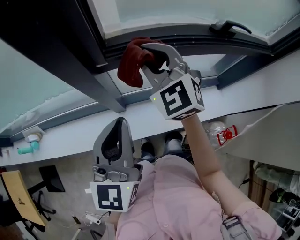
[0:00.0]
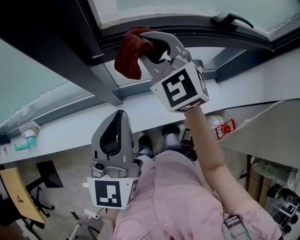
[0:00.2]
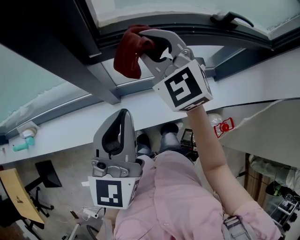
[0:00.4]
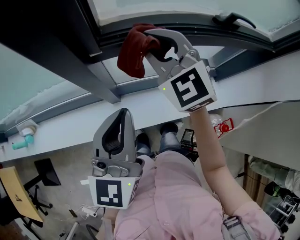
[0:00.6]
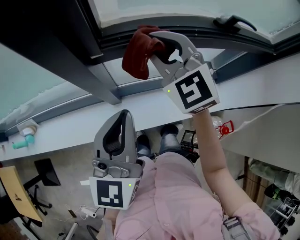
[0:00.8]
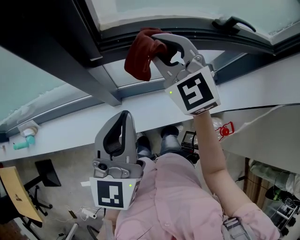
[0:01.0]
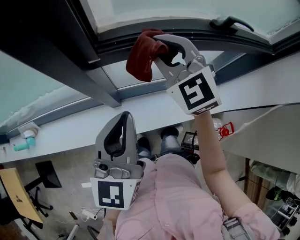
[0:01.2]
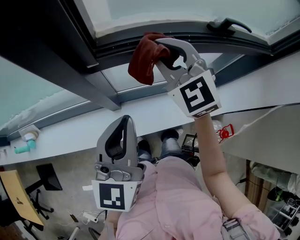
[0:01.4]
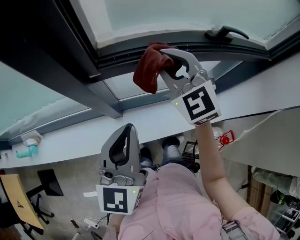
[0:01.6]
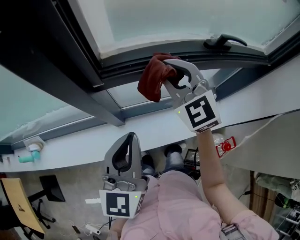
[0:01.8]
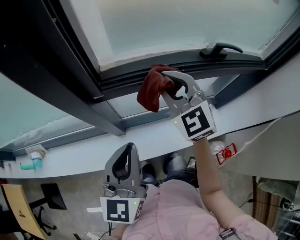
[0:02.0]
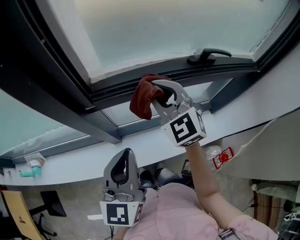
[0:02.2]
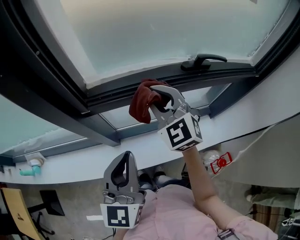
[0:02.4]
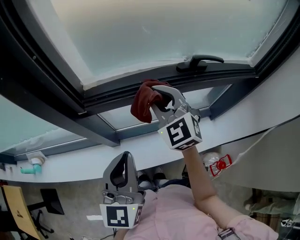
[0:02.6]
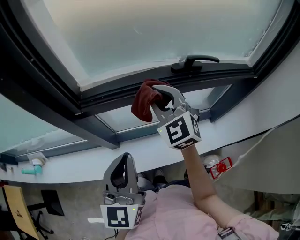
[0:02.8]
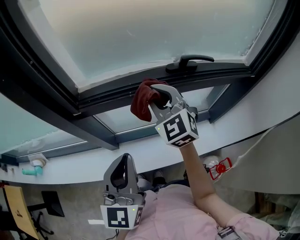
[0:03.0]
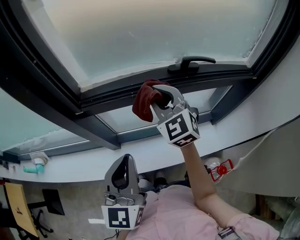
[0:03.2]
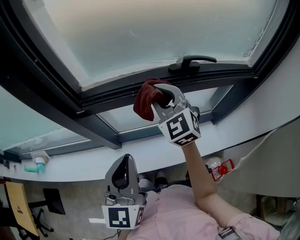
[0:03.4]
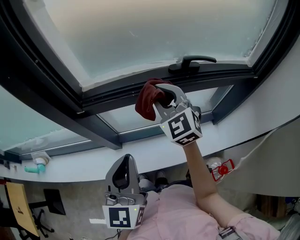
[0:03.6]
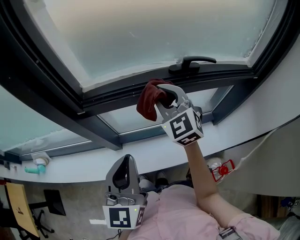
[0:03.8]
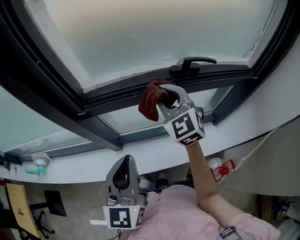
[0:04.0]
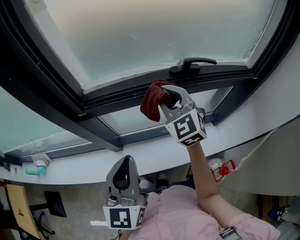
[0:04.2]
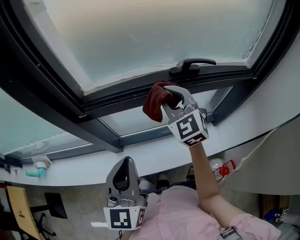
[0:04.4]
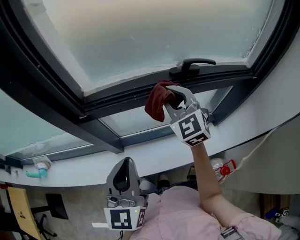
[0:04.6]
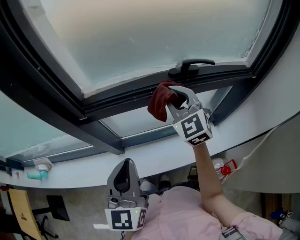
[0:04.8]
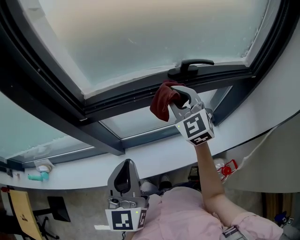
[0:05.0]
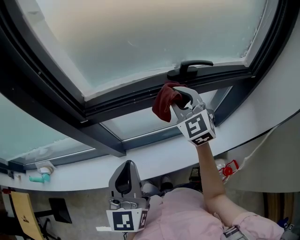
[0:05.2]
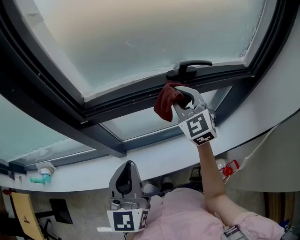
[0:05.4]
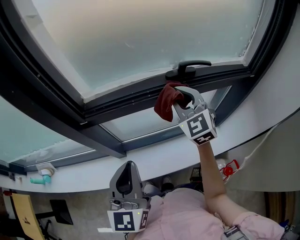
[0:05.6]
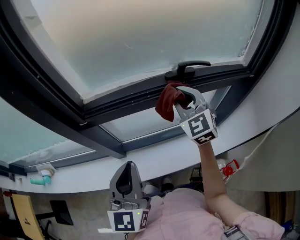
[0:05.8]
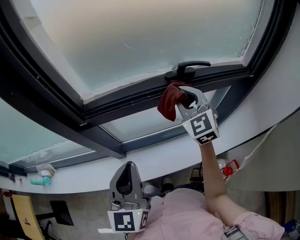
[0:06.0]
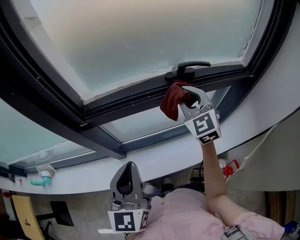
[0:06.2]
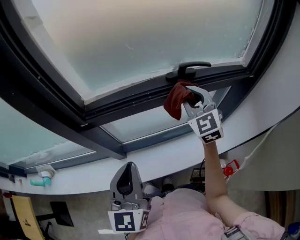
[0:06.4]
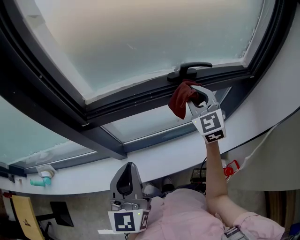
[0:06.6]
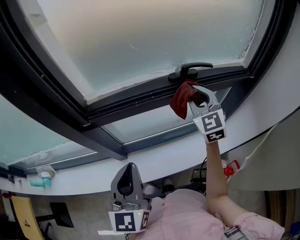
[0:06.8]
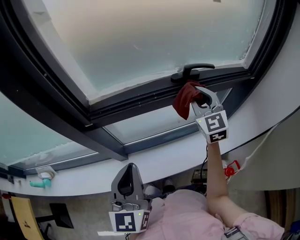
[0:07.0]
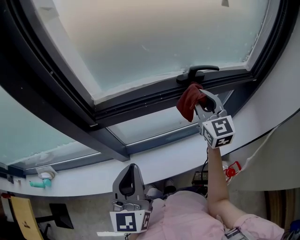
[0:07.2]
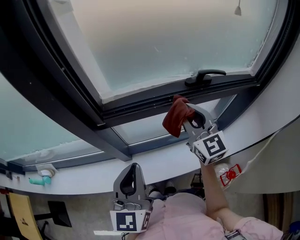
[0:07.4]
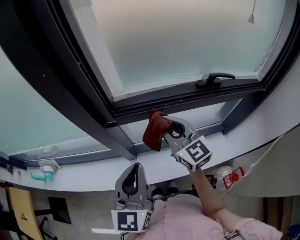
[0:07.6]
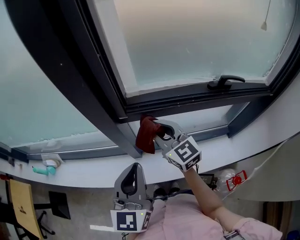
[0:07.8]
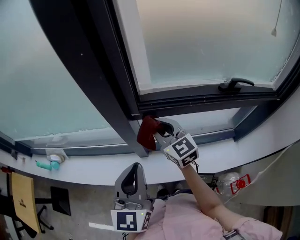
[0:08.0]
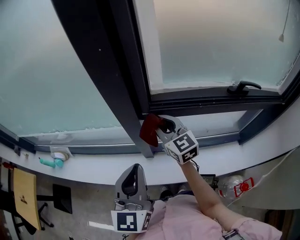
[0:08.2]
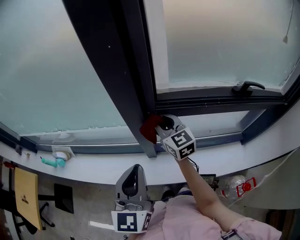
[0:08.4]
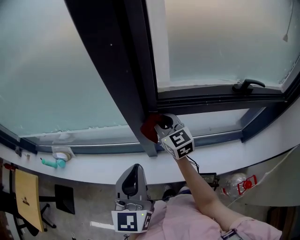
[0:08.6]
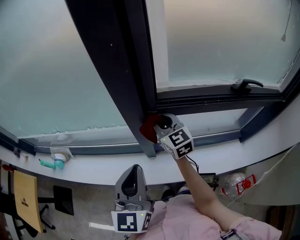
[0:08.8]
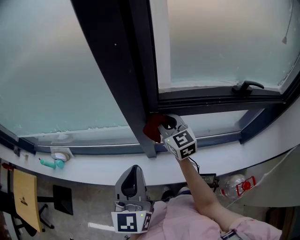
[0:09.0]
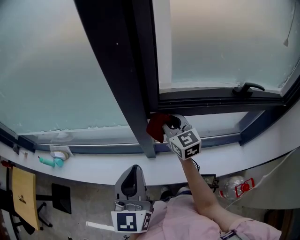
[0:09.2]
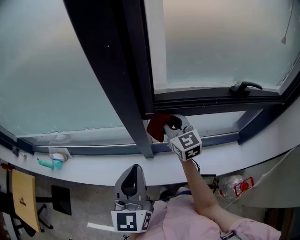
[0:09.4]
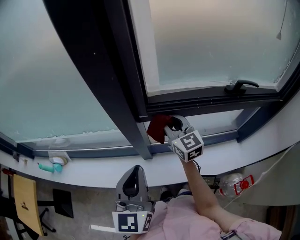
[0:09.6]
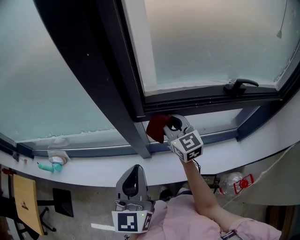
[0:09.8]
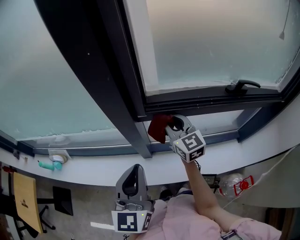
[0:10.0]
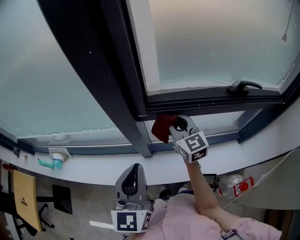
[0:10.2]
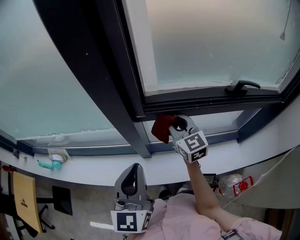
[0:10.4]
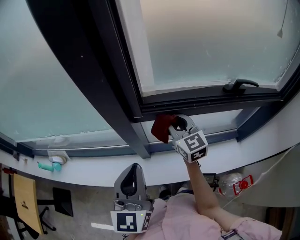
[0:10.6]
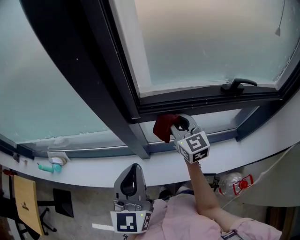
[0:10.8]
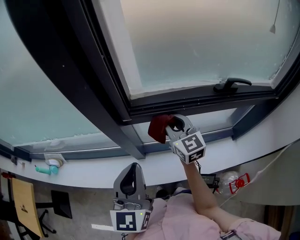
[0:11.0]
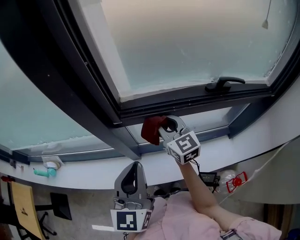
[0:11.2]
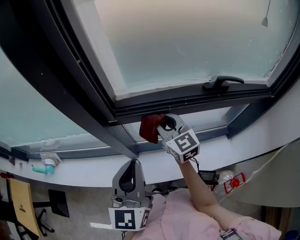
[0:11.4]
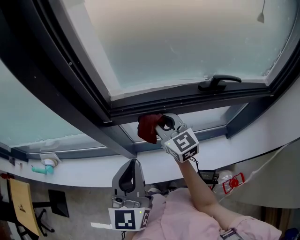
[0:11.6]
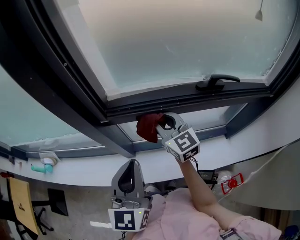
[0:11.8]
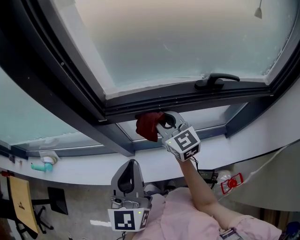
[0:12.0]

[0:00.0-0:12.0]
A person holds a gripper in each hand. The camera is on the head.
0:00.0 to 0:01.6: The right gripper goes about 5 cm to the right.
0:01.6 to 0:03.0: Both grippers travel together to the right, some 10 cm.
0:03.0 to 0:04.4: There are only small adjustments of the grippers.
0:04.4 to 0:06.0: The right gripper is displaced to the right by about 5 cm.
0:06.0 to 0:07.6: The right gripper goes roughly 20 cm to the left, and turns by approximately 30 degrees. The left gripper moves to the left, roughly 10 cm.
0:07.6 to 0:09.0: The right gripper shifts about 15 cm to the left and forward; the left gripper goes roughly 15 cm to the left.
0:09.0 to 0:10.4: The right gripper travels to the right by roughly 10 cm; the left gripper goes roughly 5 cm to the right.
0:10.4 to 0:12.0: Both grippers travel together to the right, some 10 cm.

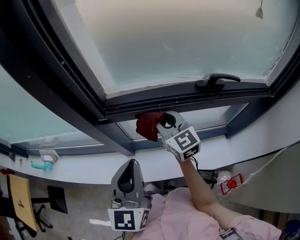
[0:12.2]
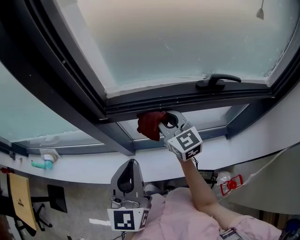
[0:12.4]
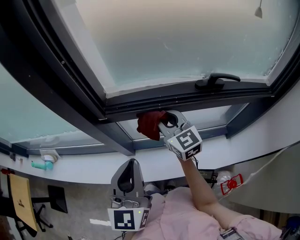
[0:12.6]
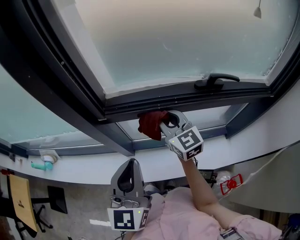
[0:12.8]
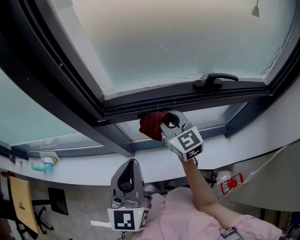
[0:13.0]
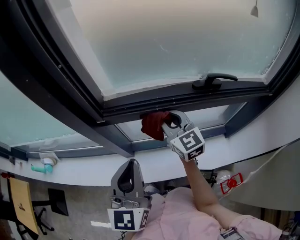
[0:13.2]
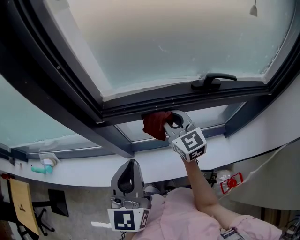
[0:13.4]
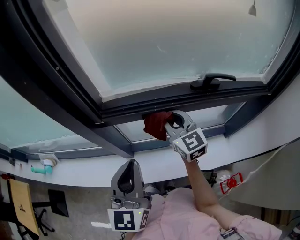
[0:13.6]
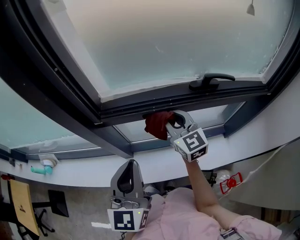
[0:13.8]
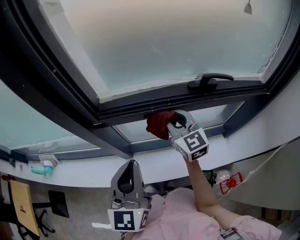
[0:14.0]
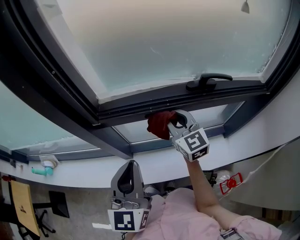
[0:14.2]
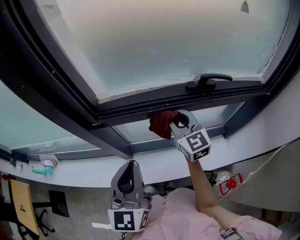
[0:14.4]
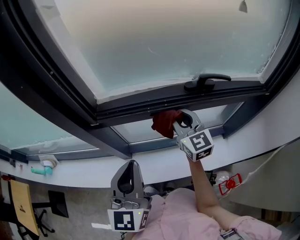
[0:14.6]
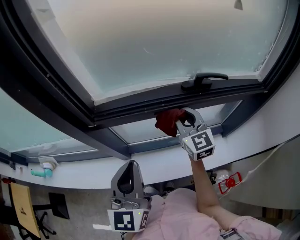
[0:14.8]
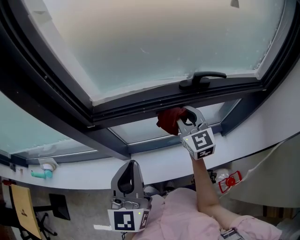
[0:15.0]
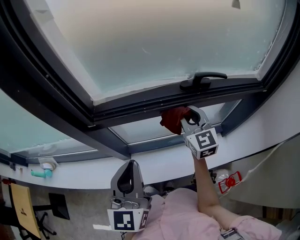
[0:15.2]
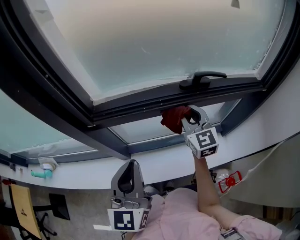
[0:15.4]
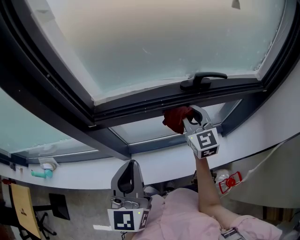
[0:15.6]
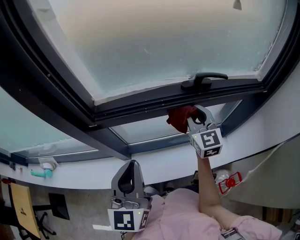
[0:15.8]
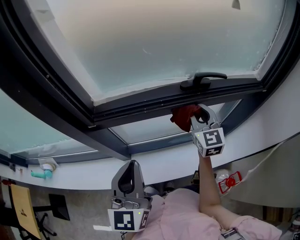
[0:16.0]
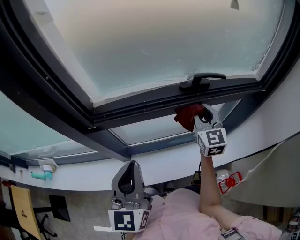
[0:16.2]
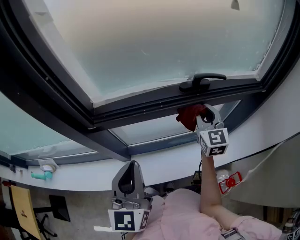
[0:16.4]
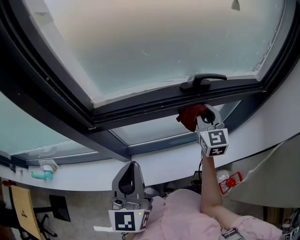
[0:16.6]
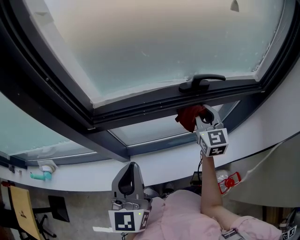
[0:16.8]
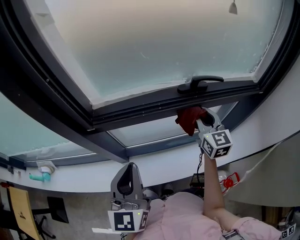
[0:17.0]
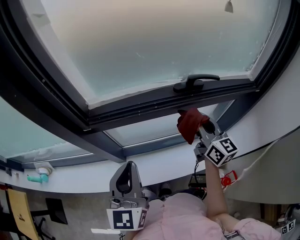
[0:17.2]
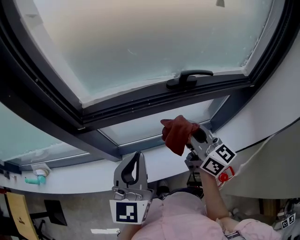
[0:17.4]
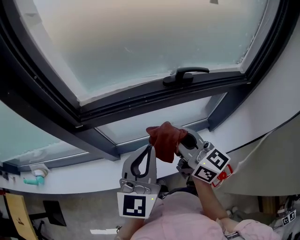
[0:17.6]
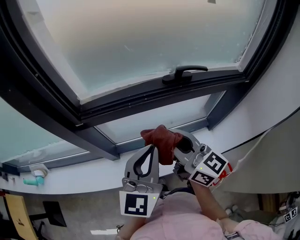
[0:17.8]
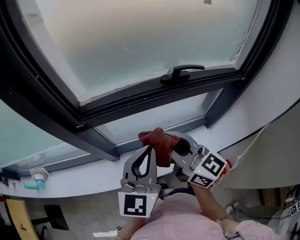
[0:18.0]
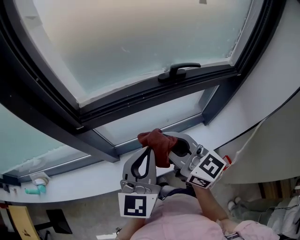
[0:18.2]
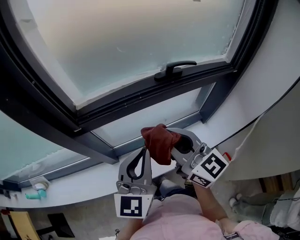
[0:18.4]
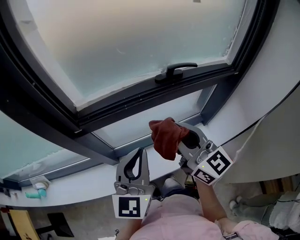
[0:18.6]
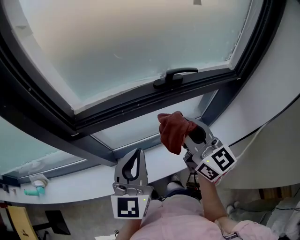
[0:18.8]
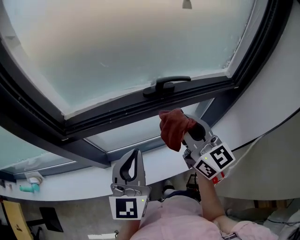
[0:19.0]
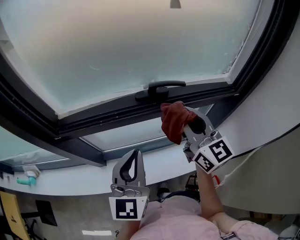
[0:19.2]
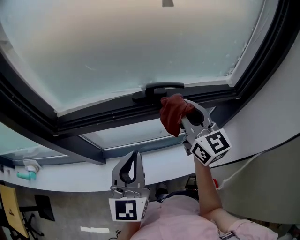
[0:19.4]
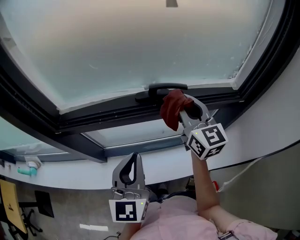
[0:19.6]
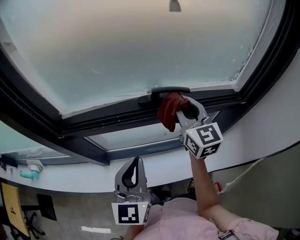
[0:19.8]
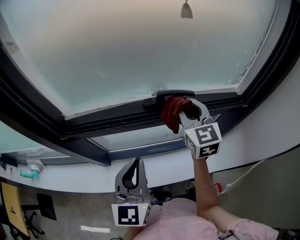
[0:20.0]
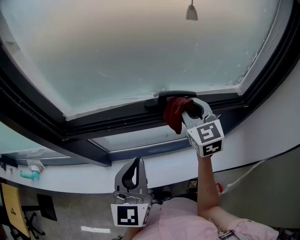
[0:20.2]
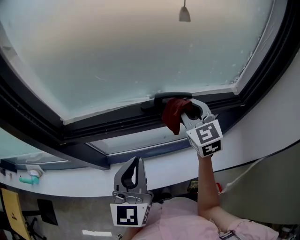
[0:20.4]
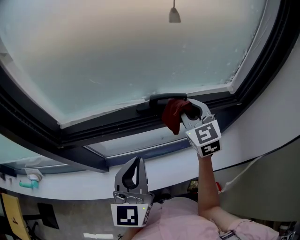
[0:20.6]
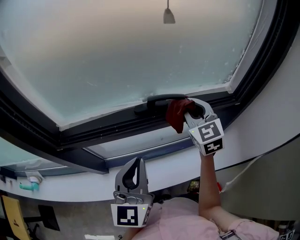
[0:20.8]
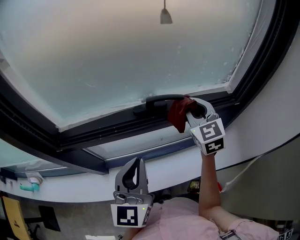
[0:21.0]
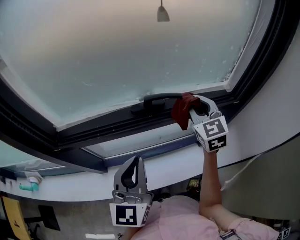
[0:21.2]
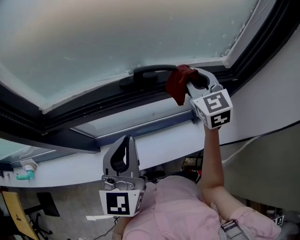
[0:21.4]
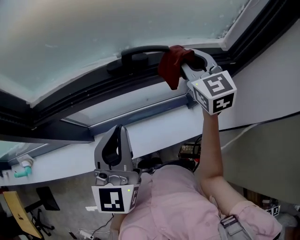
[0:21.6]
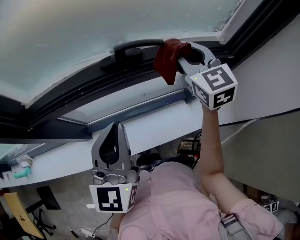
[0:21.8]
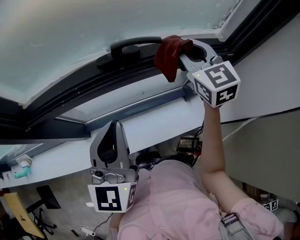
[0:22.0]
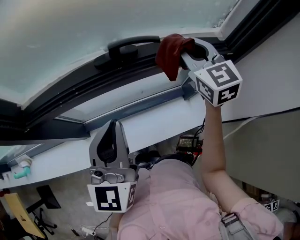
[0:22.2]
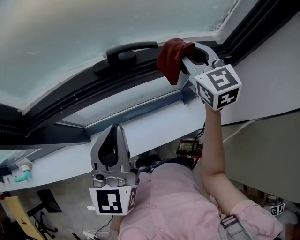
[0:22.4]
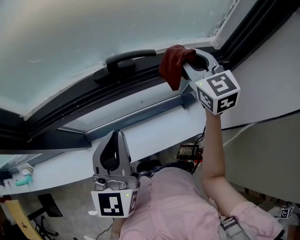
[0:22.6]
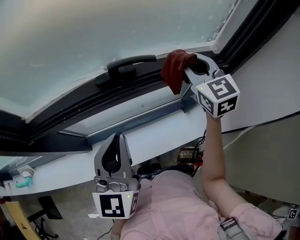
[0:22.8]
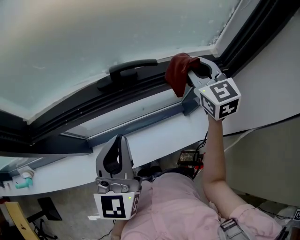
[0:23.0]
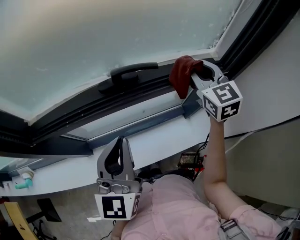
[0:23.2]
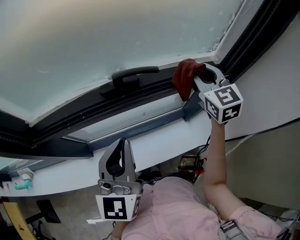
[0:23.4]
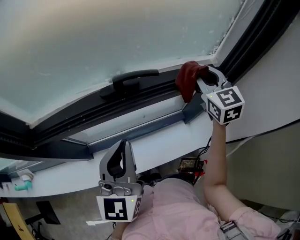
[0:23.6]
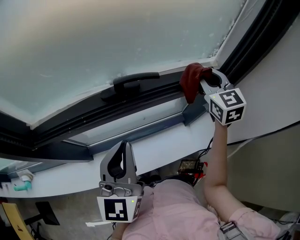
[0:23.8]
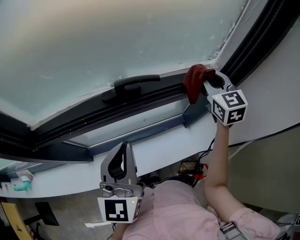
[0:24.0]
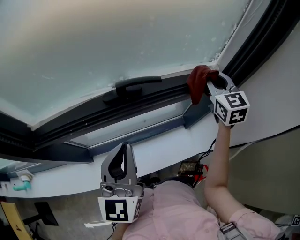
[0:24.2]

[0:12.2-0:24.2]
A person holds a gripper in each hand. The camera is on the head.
0:12.2 to 0:13.8: The right gripper heads to the right, covering some 5 cm.
0:13.8 to 0:15.2: The right gripper moves to the right, roughly 10 cm.
0:15.2 to 0:16.6: The right gripper shifts some 5 cm to the right.
0:16.6 to 0:18.2: The right gripper travels backward and to the left by approximately 25 cm, and turns by some 40 degrees. Meanwhile the left gripper is displaced to the right by roughly 5 cm.
0:18.2 to 0:19.8: The right gripper shifts about 30 cm to the right and forward, and changes its angle by roughly 20 degrees; the left gripper is displaced to the right by approximately 10 cm.
0:19.8 to 0:21.2: The right gripper is displaced to the right by about 10 cm, and changes its angle by some 20 degrees.
0:21.2 to 0:22.6: The grippers stay close to where they were, moving slightly.
0:22.6 to 0:24.2: The right gripper moves to the right, about 10 cm.
